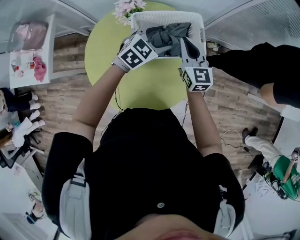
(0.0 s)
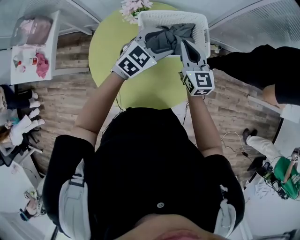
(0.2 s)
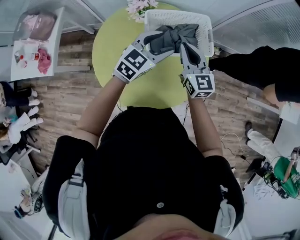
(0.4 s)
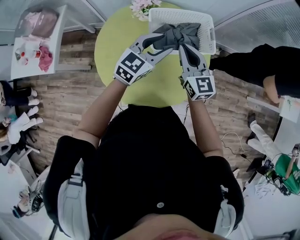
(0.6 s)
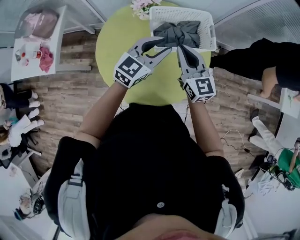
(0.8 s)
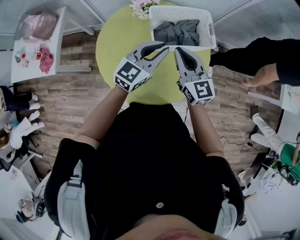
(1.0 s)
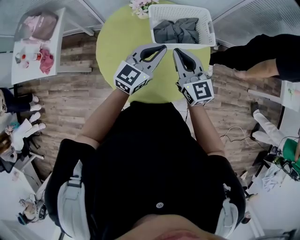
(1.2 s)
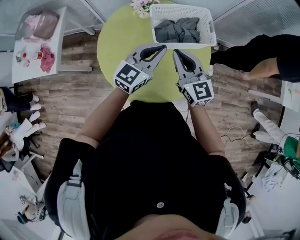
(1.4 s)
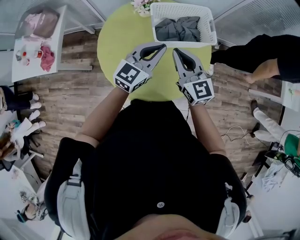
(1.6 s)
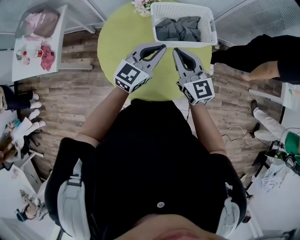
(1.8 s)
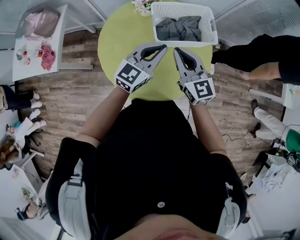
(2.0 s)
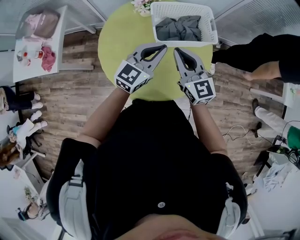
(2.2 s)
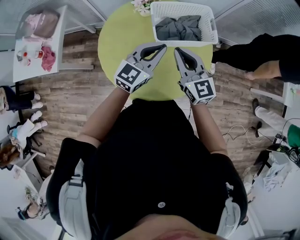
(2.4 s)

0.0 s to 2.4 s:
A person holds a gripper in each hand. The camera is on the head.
0.0 to 1.2 s: The right gripper goes roughly 20 cm backward and to the left. The left gripper travels backward and upward by approximately 20 cm, swivels approximately 30 degrees, and closes its fingers.
1.2 to 2.4 s: The grippers move only a little.

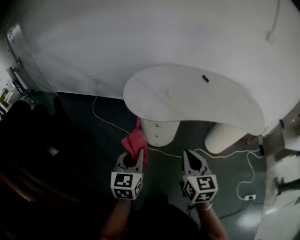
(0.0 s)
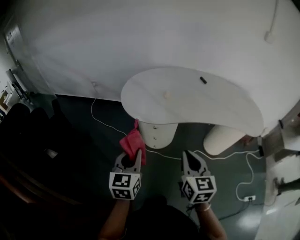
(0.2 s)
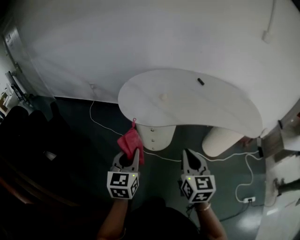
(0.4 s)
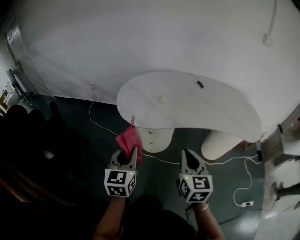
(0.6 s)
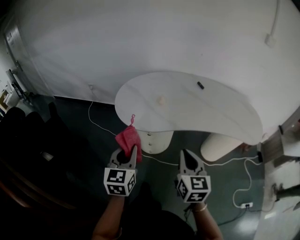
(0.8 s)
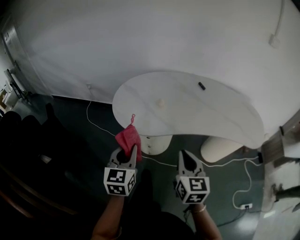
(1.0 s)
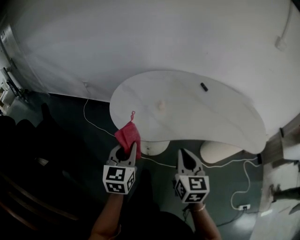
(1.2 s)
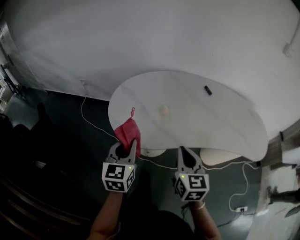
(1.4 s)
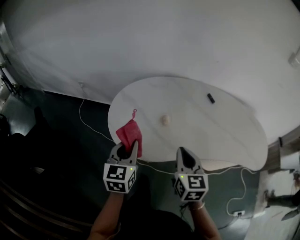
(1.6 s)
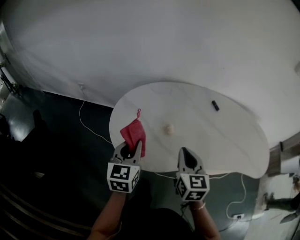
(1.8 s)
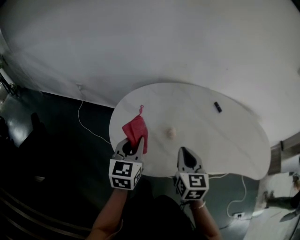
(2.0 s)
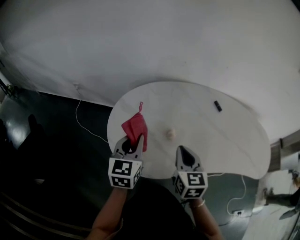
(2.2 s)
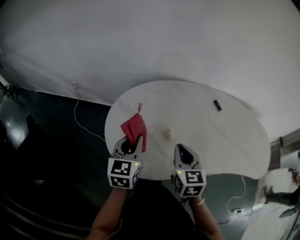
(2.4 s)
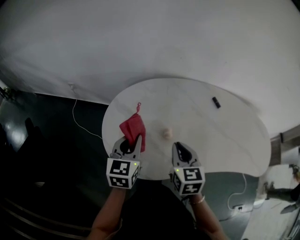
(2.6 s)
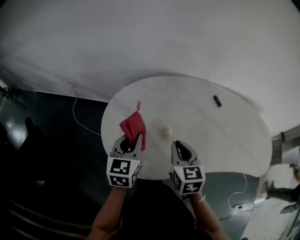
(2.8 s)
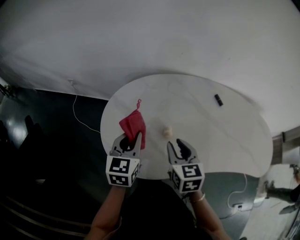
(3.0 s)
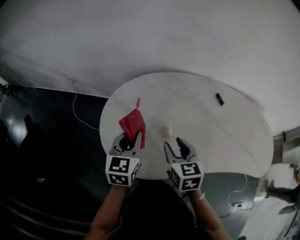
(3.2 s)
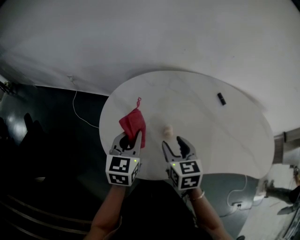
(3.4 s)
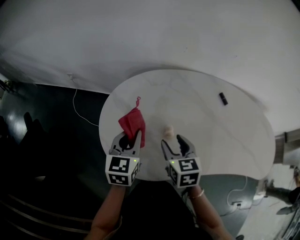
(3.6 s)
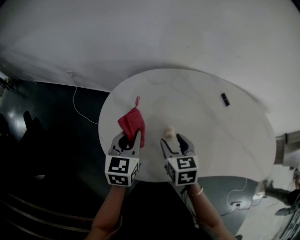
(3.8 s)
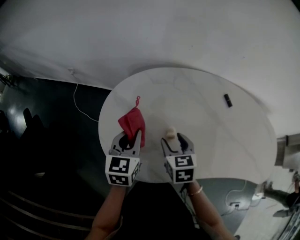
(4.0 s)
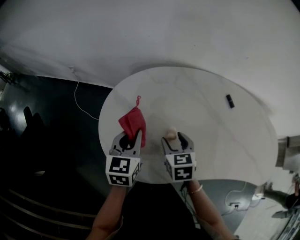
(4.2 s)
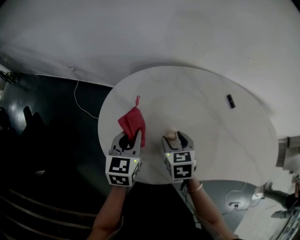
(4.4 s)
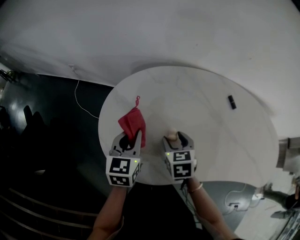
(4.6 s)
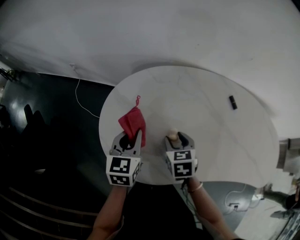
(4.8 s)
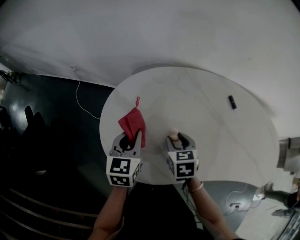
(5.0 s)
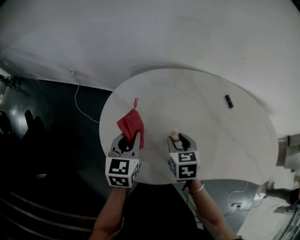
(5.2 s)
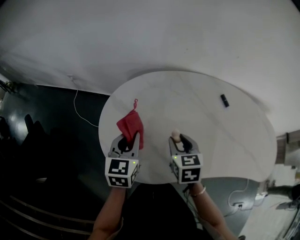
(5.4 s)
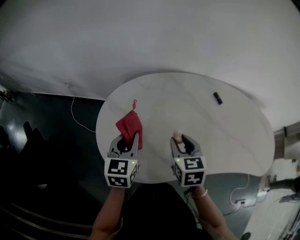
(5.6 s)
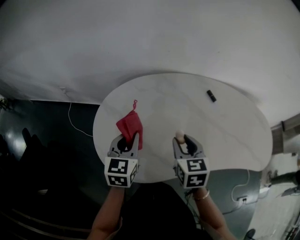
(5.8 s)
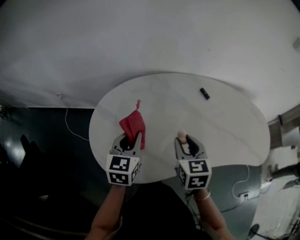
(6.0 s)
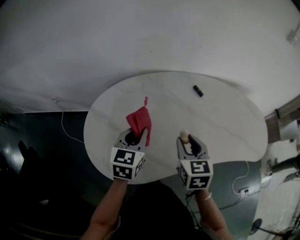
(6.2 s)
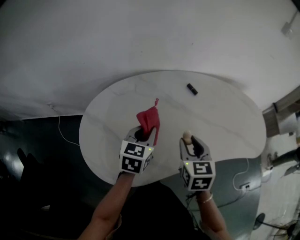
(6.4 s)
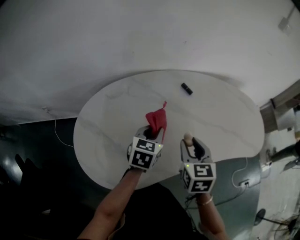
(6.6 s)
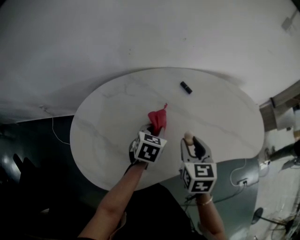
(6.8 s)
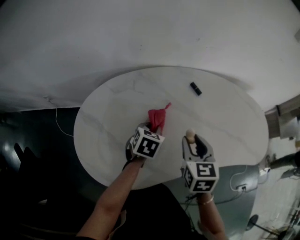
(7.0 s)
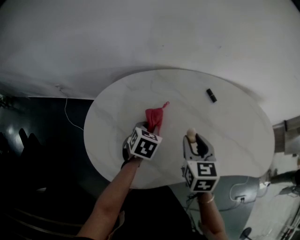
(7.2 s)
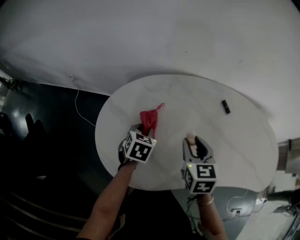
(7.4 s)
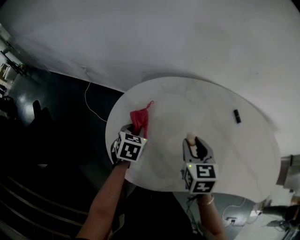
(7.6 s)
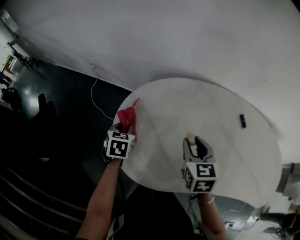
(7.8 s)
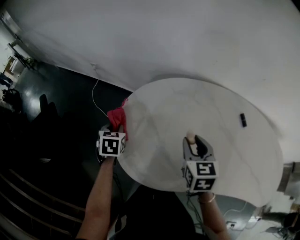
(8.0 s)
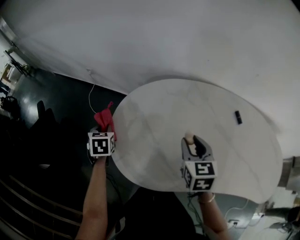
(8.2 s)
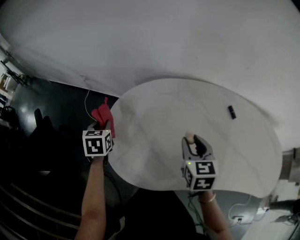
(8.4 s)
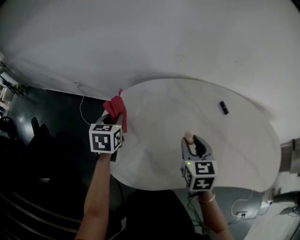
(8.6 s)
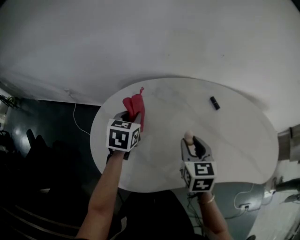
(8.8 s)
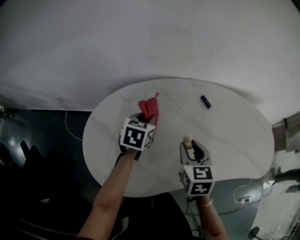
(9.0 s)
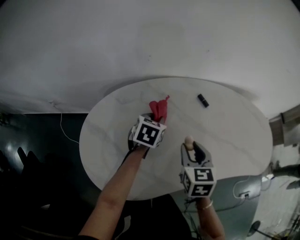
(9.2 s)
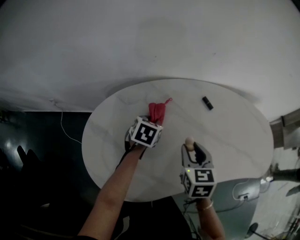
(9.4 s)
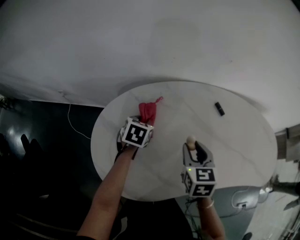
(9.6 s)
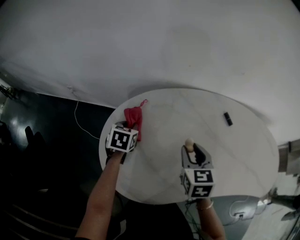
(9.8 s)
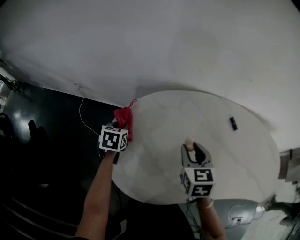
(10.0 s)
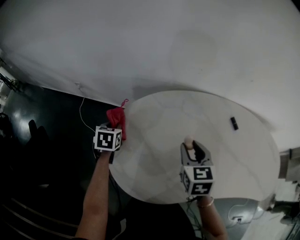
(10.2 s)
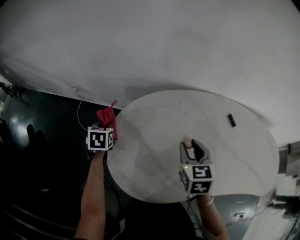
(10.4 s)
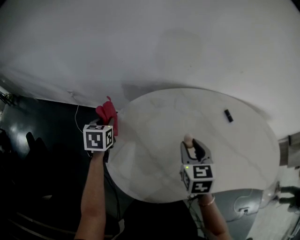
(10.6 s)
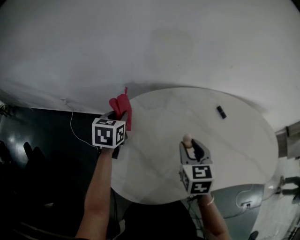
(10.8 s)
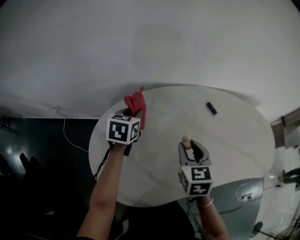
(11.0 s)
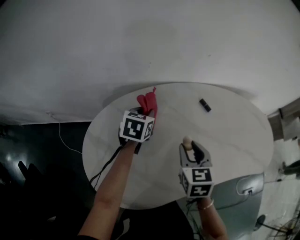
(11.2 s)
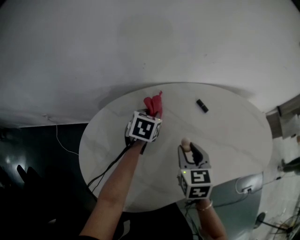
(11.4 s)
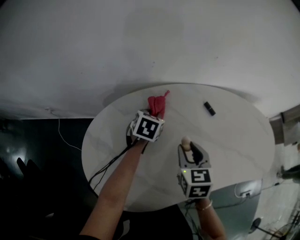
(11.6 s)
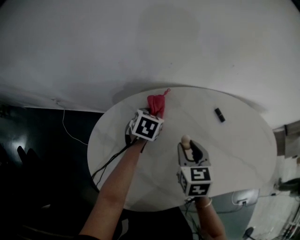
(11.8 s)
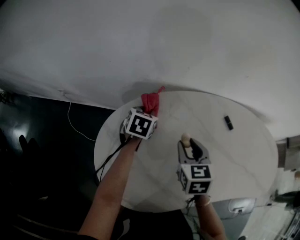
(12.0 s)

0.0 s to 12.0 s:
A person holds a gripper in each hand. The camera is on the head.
0.0 to 1.6 s: The grippers both shift forward by some 25 cm.
1.6 to 3.0 s: The grippers both shift forward by about 15 cm. The right gripper opens.
3.0 to 4.4 s: The right gripper heads downward and forward, covering about 10 cm, and opens.
4.4 to 6.0 s: The right gripper goes about 15 cm upward and to the right, changes its angle by roughly 20 degrees, and closes up. The left gripper shifts some 5 cm to the right.
6.0 to 7.6 s: The left gripper heads downward, covering some 10 cm, and swivels roughly 30 degrees, while the right gripper moves roughly 10 cm.
7.6 to 9.0 s: The left gripper changes place by about 20 cm, and turns by roughly 20 degrees, while the right gripper shifts by approximately 10 cm.
9.0 to 10.4 s: The left gripper ends up about 35 cm from where it was, and turns by about 30 degrees. Meanwhile the right gripper shifts by approximately 15 cm.
10.4 to 12.0 s: The left gripper reaches some 5 cm upward, then returns, and changes its angle by about 20 degrees.

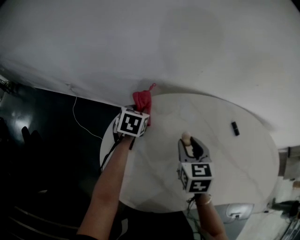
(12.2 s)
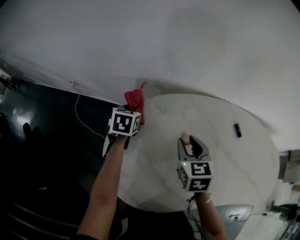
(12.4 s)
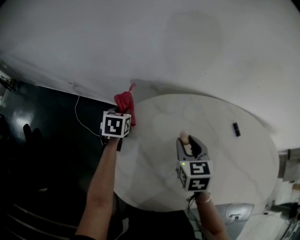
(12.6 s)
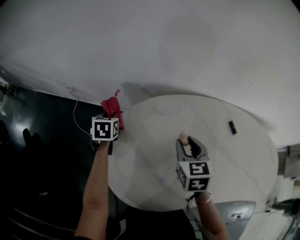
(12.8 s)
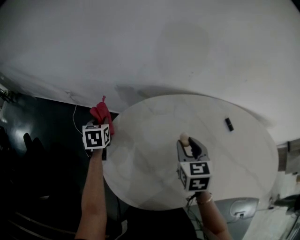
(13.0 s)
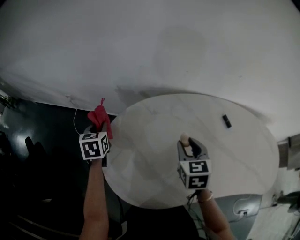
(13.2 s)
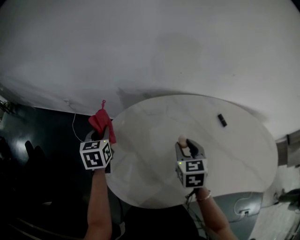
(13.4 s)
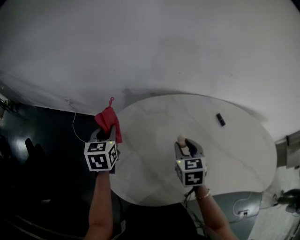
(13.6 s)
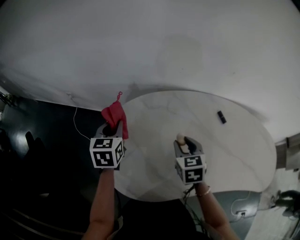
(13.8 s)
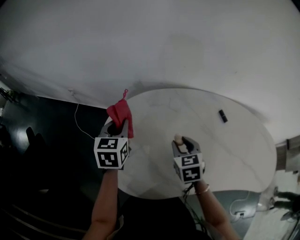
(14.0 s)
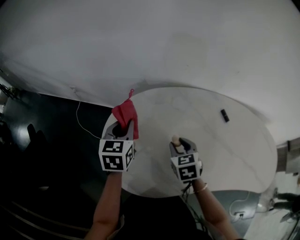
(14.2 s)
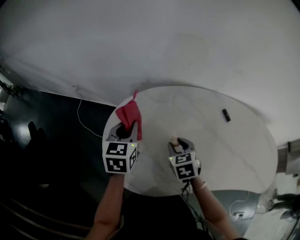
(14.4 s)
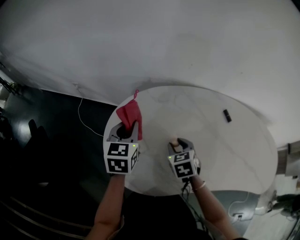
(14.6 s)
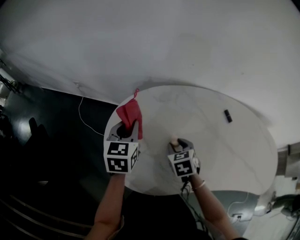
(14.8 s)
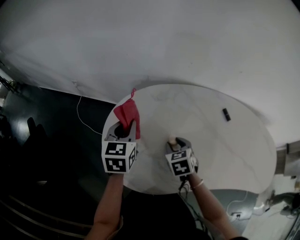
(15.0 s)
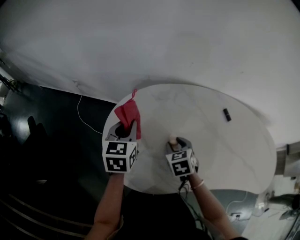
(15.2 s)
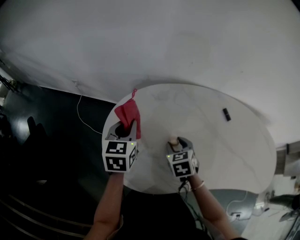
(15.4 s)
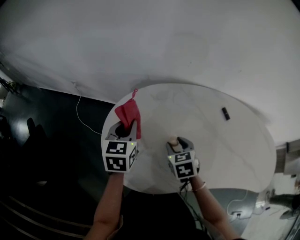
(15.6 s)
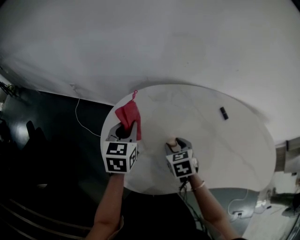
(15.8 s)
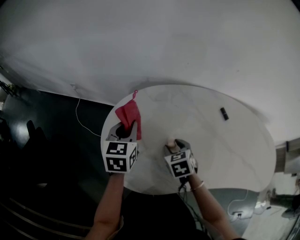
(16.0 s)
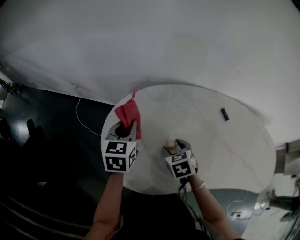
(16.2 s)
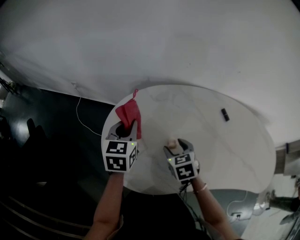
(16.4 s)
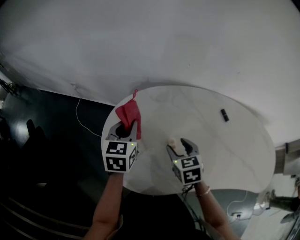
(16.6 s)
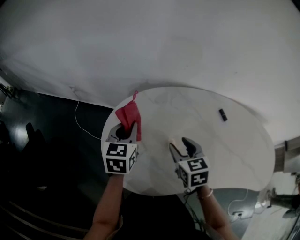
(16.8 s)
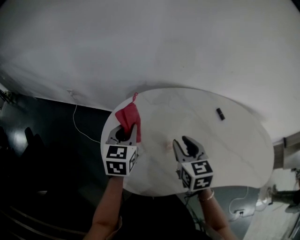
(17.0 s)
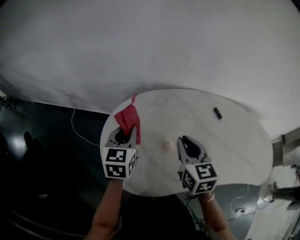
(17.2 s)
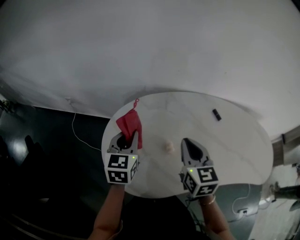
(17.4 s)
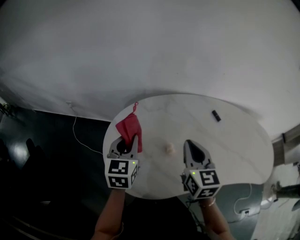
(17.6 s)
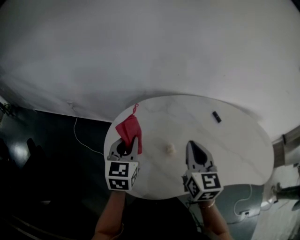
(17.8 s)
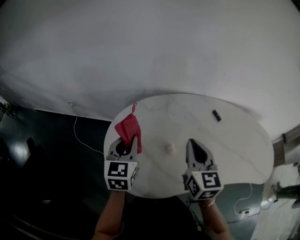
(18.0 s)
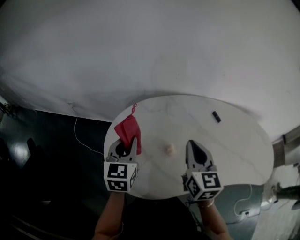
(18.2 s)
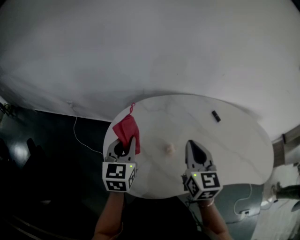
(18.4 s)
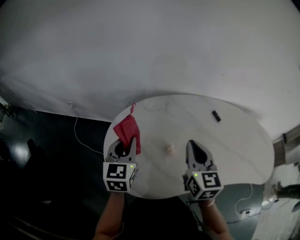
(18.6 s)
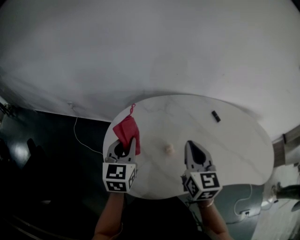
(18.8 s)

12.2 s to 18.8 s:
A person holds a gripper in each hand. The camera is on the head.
12.2 to 13.8 s: The right gripper shifts some 5 cm backward. The left gripper shifts about 15 cm backward and upward, reaches some 15 cm to the left, then returns, and rotates roughly 20 degrees.
13.8 to 15.4 s: The right gripper moves downward, approximately 5 cm, while the left gripper ends up some 5 cm from where it was.
15.4 to 17.2 s: The right gripper shifts some 15 cm upward, turns by some 30 degrees, and closes.
17.2 to 18.8 s: The grippers make only small movements.

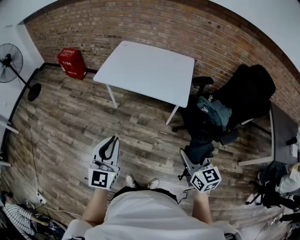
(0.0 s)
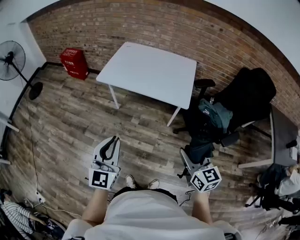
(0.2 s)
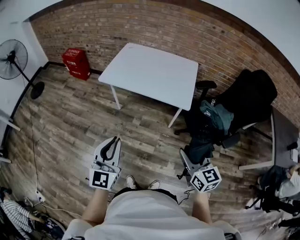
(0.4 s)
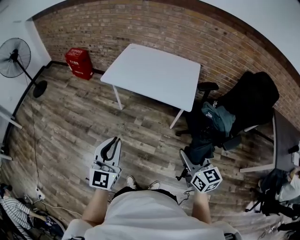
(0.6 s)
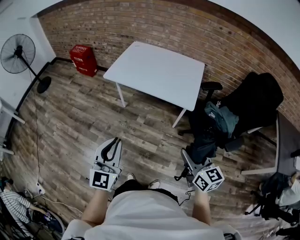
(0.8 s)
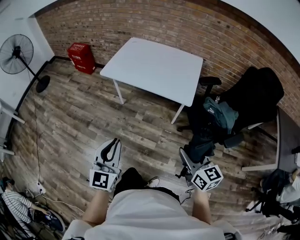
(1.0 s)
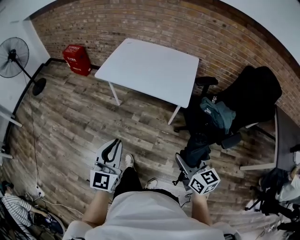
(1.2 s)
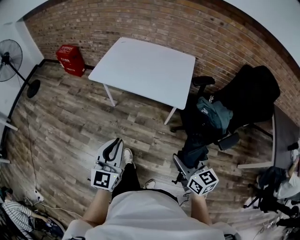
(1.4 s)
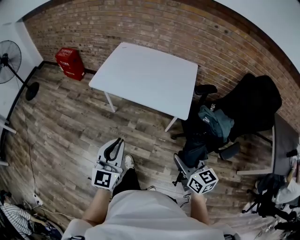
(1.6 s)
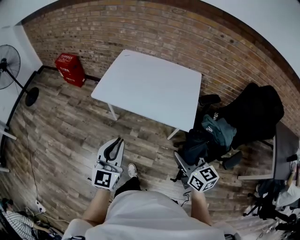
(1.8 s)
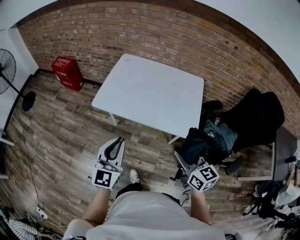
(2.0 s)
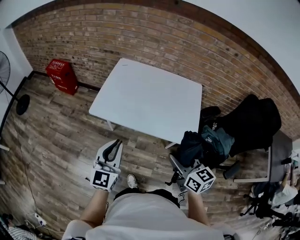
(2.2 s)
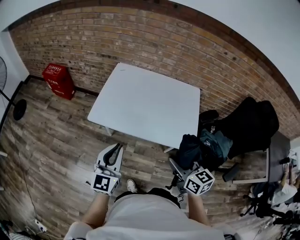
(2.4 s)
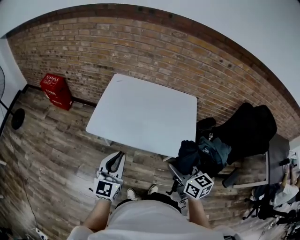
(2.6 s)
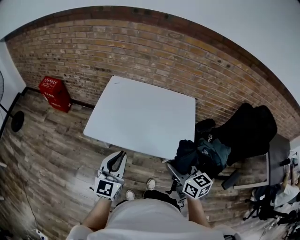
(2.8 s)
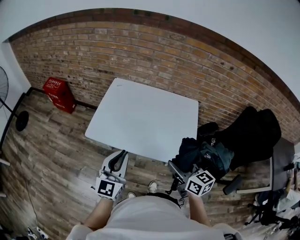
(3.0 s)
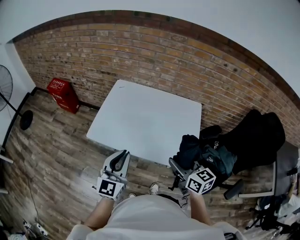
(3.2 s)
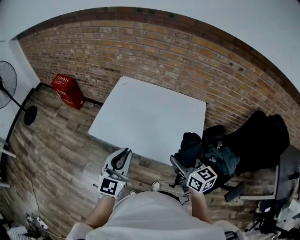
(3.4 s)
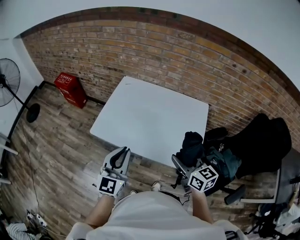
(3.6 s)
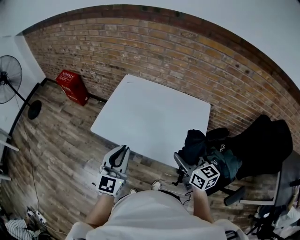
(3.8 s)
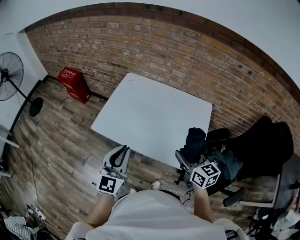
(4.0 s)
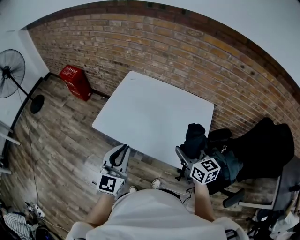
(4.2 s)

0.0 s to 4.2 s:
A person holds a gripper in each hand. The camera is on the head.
0.0 to 1.4 s: The left gripper moves to the right, some 5 cm.
1.4 to 2.8 s: Both grippers travel together forward, some 30 cm.
2.8 to 4.2 s: The right gripper shifts roughly 15 cm forward and to the right; the left gripper ends up some 5 cm from where it was.
